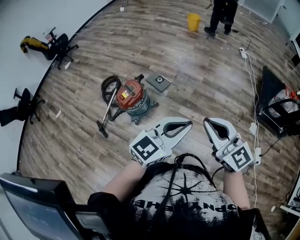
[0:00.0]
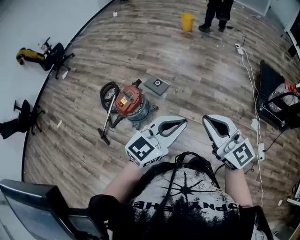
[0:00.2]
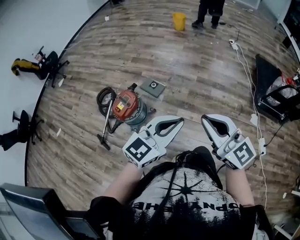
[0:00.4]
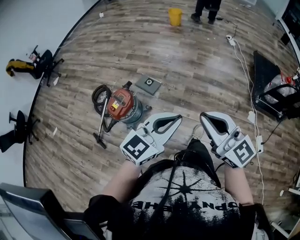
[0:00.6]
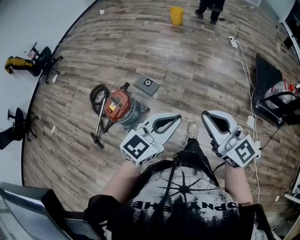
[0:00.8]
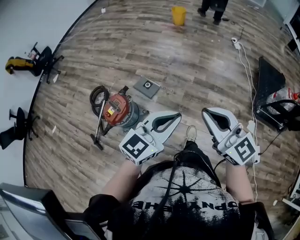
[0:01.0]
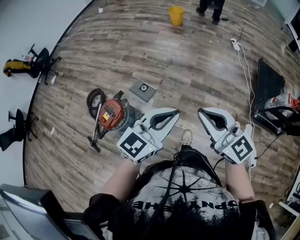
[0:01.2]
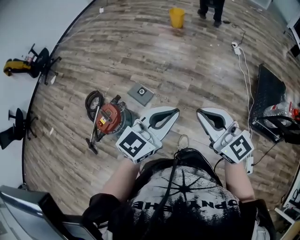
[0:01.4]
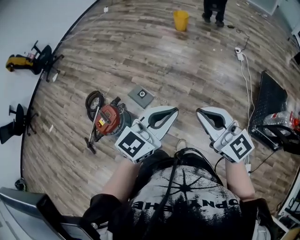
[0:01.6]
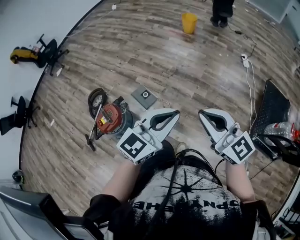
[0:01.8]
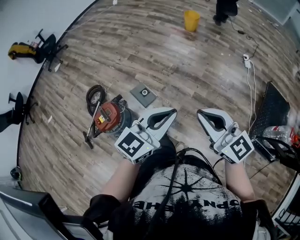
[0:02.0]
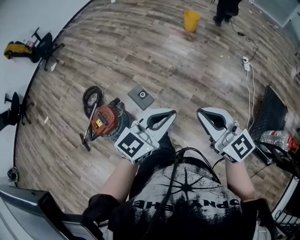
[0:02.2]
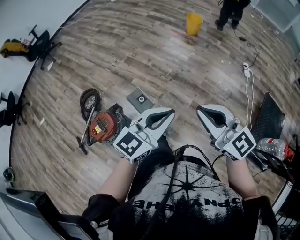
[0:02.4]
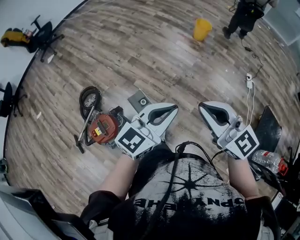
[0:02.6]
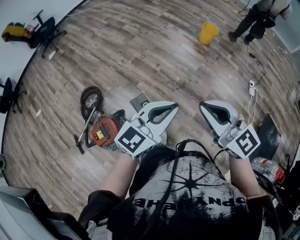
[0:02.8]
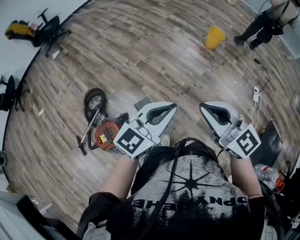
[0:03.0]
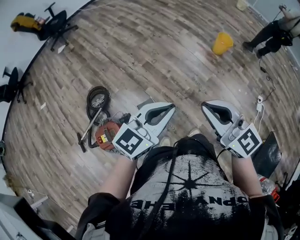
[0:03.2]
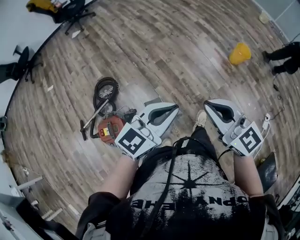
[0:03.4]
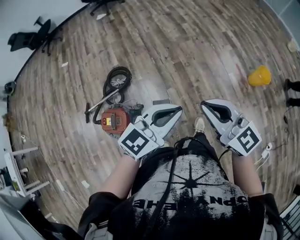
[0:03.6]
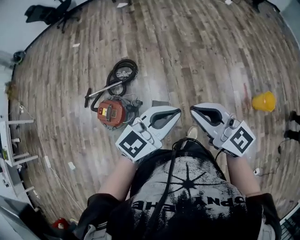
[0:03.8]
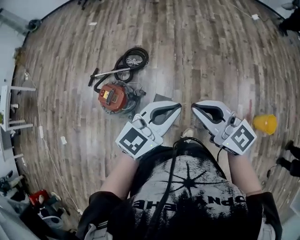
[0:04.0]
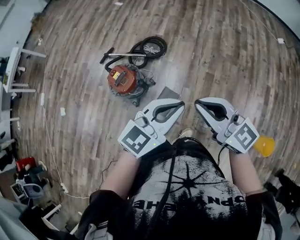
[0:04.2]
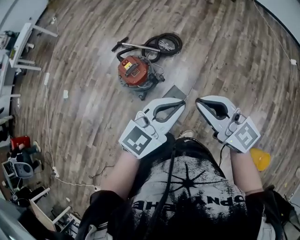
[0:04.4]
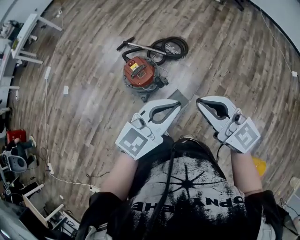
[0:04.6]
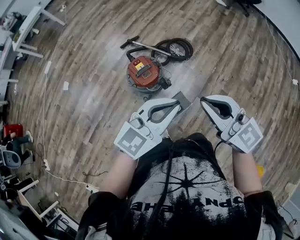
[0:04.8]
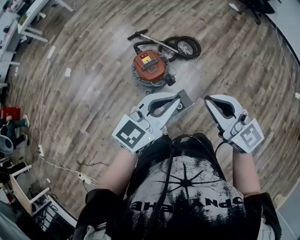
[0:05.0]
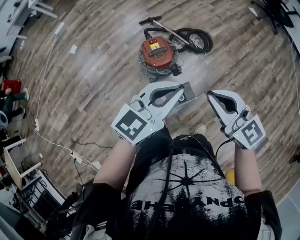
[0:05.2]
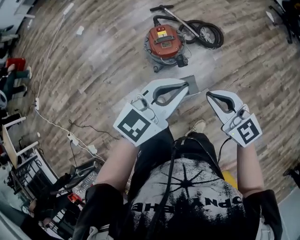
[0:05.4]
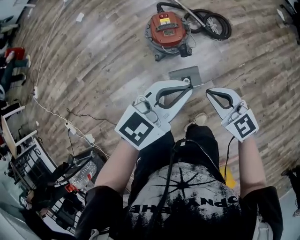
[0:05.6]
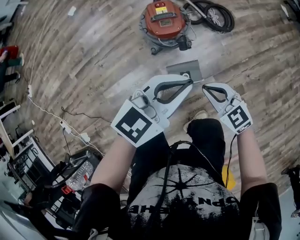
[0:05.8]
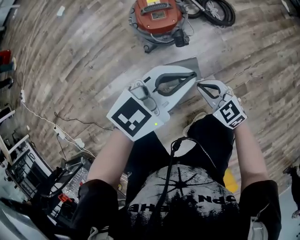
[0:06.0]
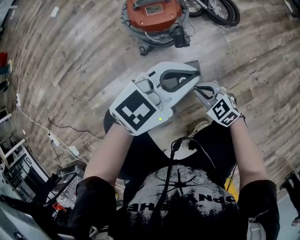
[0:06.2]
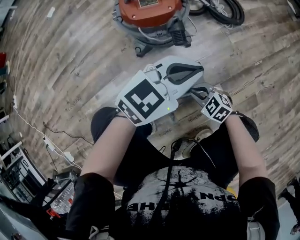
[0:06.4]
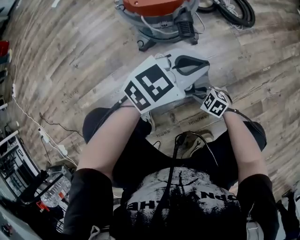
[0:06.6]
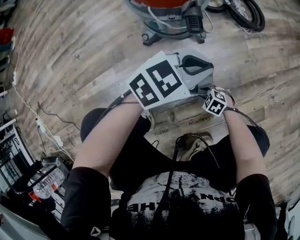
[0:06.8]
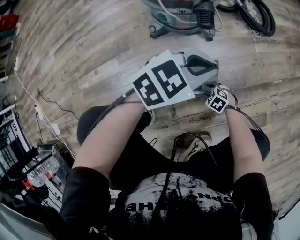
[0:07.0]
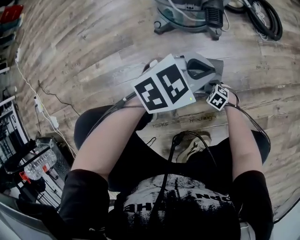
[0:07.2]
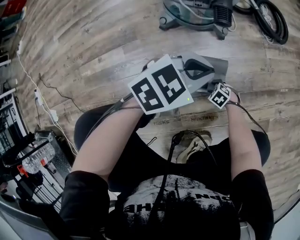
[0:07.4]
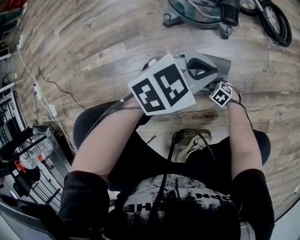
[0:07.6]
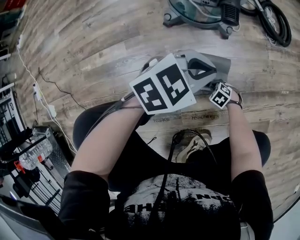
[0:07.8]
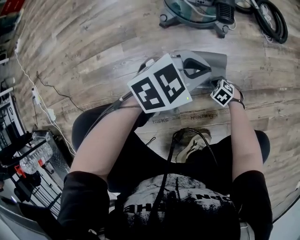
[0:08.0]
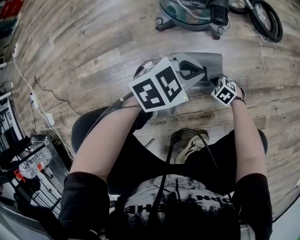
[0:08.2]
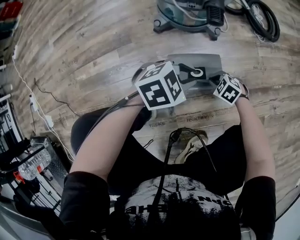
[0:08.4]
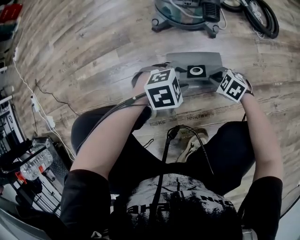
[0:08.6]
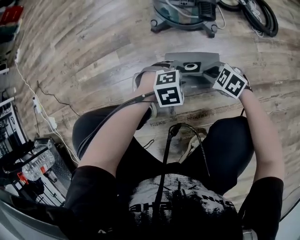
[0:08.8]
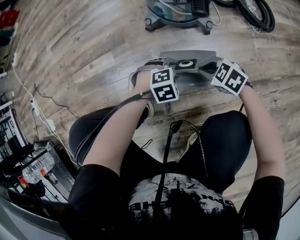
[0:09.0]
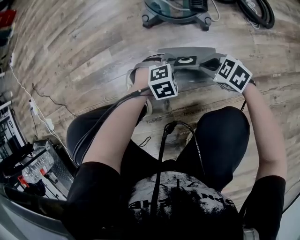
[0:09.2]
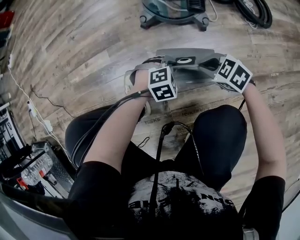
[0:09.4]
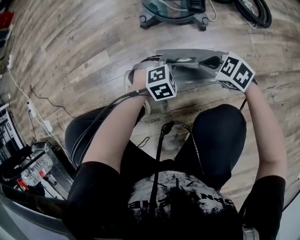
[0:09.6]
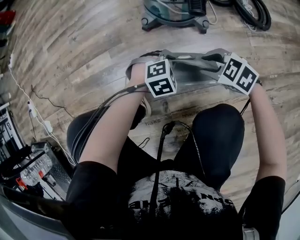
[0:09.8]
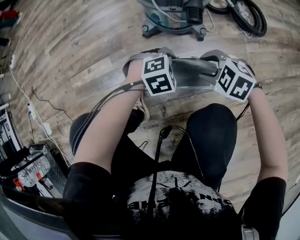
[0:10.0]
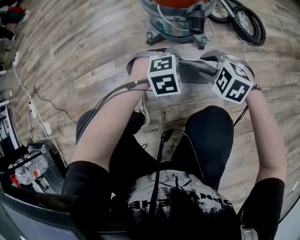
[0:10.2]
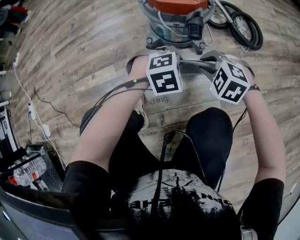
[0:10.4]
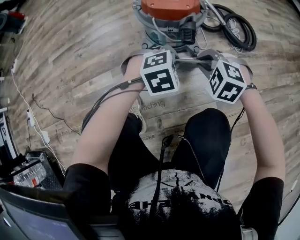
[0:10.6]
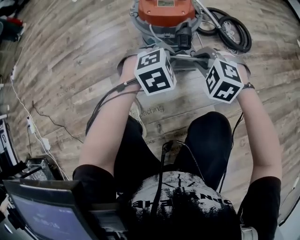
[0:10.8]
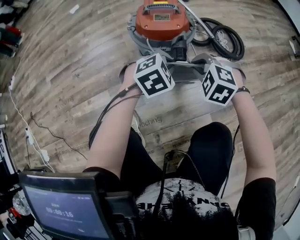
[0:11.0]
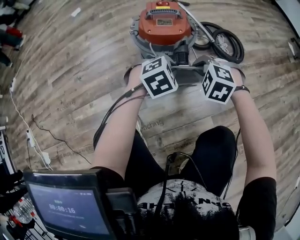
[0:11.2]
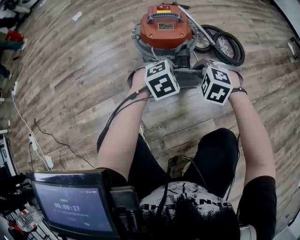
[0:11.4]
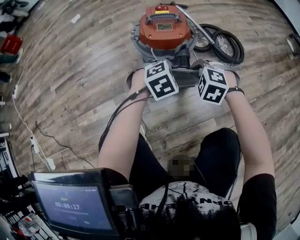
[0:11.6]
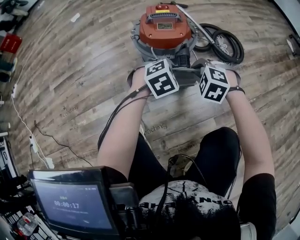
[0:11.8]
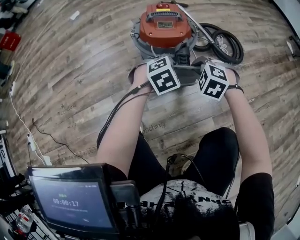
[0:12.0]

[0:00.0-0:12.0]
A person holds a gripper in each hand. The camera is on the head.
0:00.0 to 0:01.6: The grippers both shift forward by about 35 cm.
0:01.6 to 0:03.0: The two grippers go roughly 40 cm forward and to the left.
0:03.0 to 0:04.4: The right gripper ends up some 25 cm from where it was, and rotates roughly 80 degrees, while the left gripper ends up some 20 cm from where it was, and turns by approximately 70 degrees.
0:04.4 to 0:06.0: The left gripper goes about 25 cm downward, and rotates about 30 degrees, while the right gripper is displaced downward by some 50 cm, and tilts its fingers about 40 degrees downward.
0:06.0 to 0:07.6: The right gripper shifts roughly 60 cm downward, angles its fingers downward, by roughly 40 degrees, and opens its fingers; the left gripper moves downward, some 35 cm, and swivels about 20 degrees.
0:07.6 to 0:09.0: The right gripper moves upward, approximately 20 cm, changes its angle by some 20 degrees, and closes; the left gripper shifts roughly 20 cm downward, tips its fingers downward by roughly 40 degrees, and opens.
0:09.0 to 0:10.4: Both grippers move upward, roughly 15 cm. The right gripper turns by roughly 30 degrees, and opens, then closes once more; the left gripper closes its fingers.
0:10.4 to 0:12.0: The two grippers go about 10 cm forward.

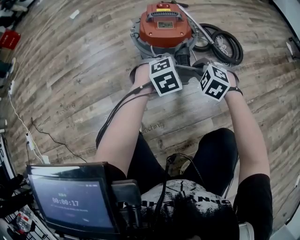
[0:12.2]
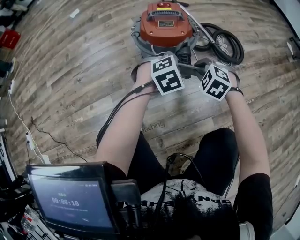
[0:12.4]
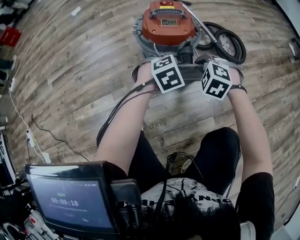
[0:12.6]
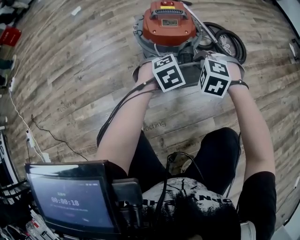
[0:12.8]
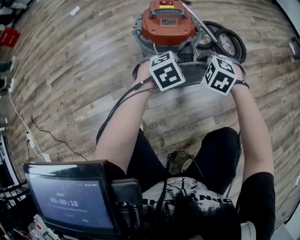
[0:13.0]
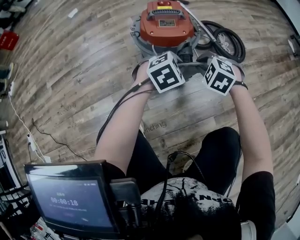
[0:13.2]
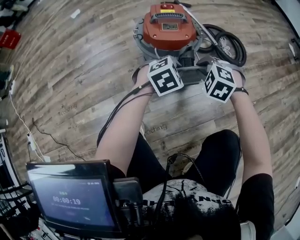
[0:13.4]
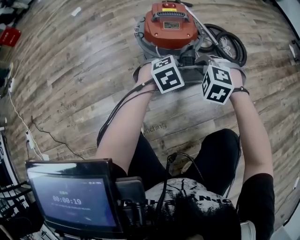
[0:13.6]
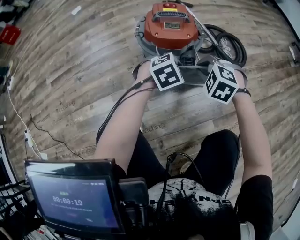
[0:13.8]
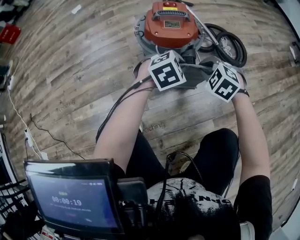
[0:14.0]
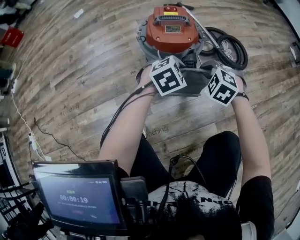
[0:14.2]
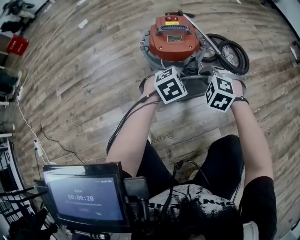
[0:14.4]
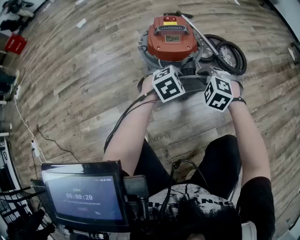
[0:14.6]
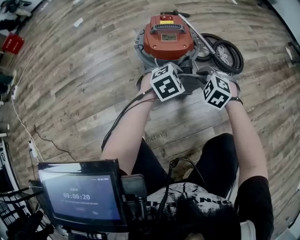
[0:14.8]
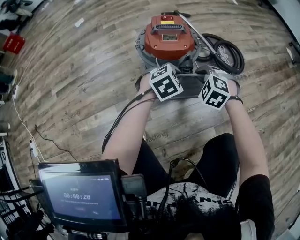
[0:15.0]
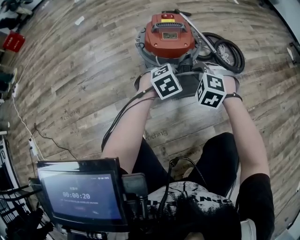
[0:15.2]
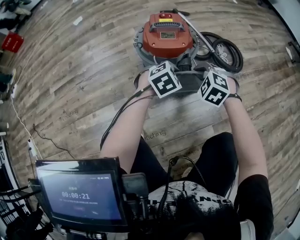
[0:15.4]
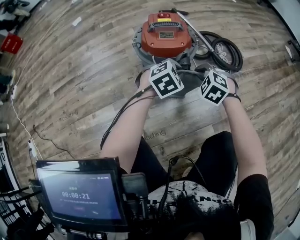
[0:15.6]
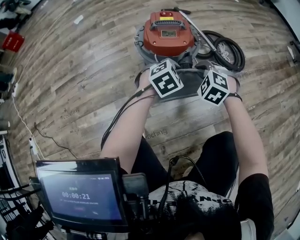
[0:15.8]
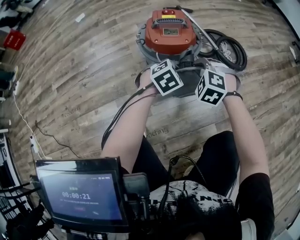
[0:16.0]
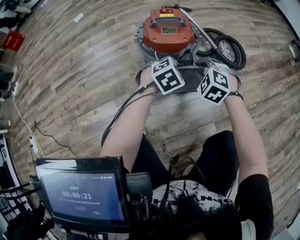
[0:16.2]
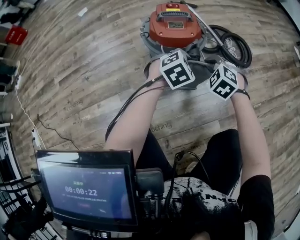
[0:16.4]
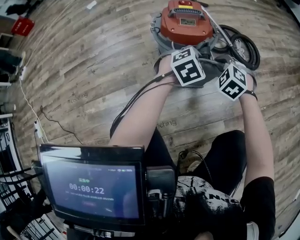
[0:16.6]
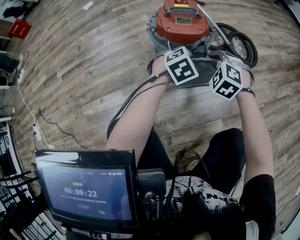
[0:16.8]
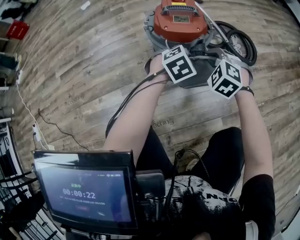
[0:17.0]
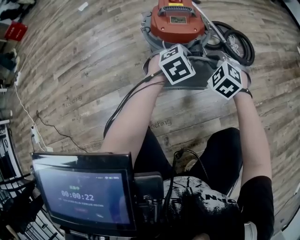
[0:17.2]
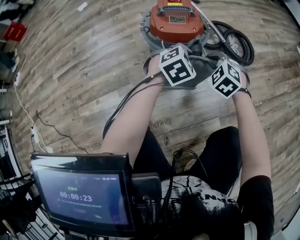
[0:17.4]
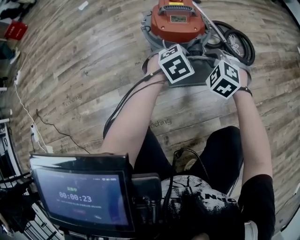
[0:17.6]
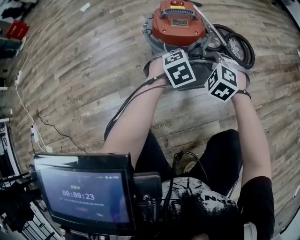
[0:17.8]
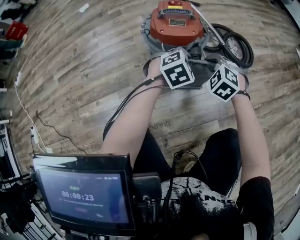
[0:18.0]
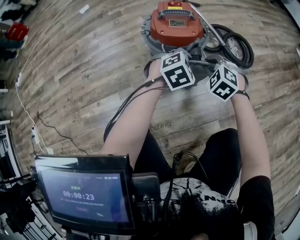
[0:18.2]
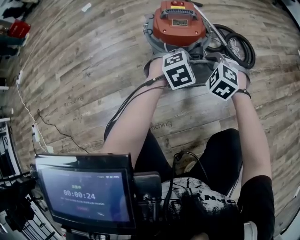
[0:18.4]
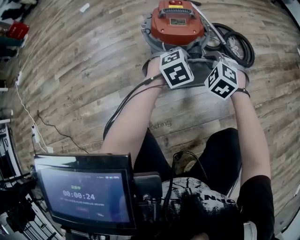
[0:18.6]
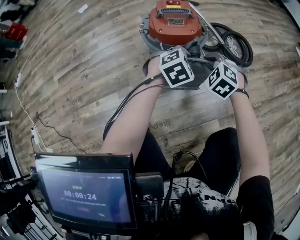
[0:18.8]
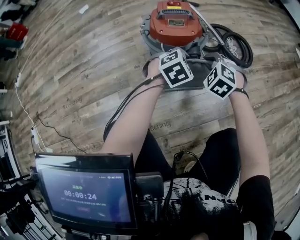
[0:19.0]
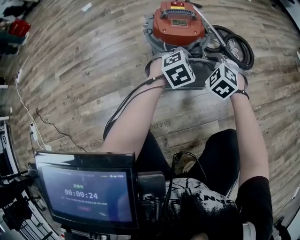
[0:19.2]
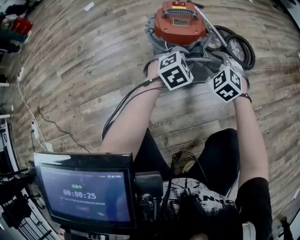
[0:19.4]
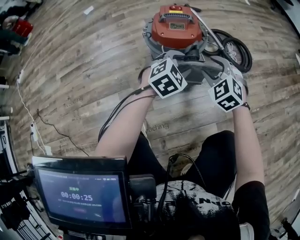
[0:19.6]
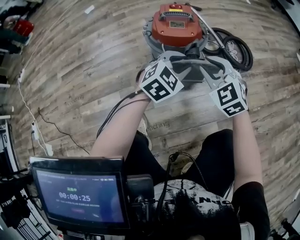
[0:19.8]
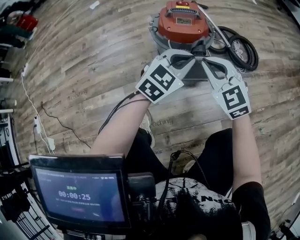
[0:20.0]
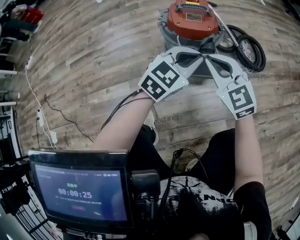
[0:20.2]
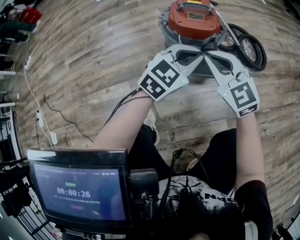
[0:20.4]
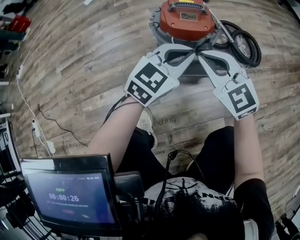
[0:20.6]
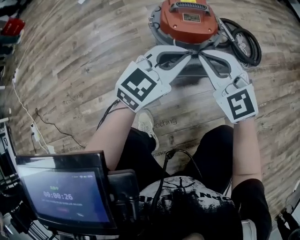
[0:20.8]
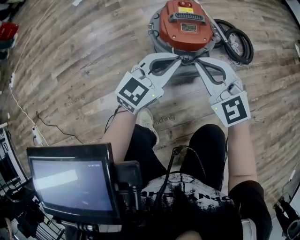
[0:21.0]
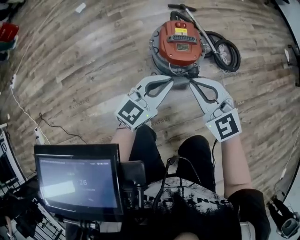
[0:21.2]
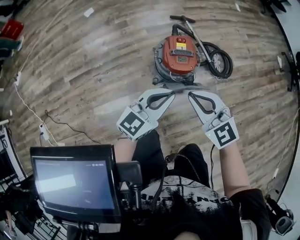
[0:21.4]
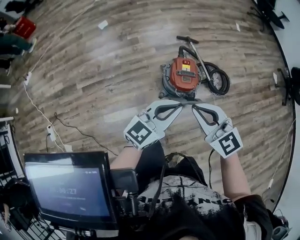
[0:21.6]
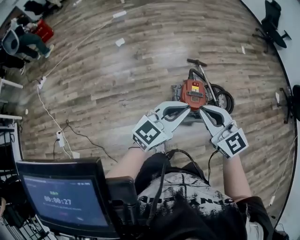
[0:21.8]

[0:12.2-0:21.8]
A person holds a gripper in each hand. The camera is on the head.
0:12.2 to 0:18.6: The grippers make only small movements.
0:18.6 to 0:20.2: The grippers both shift upward and backward by roughly 15 cm. The left gripper points its fingers roughly 30 degrees further upward, and opens and closes again. The right gripper tips its fingers upward by roughly 30 degrees, and opens, then closes once more.
0:20.2 to 0:21.8: The two grippers go approximately 50 cm upward. The left gripper changes its angle by approximately 20 degrees.

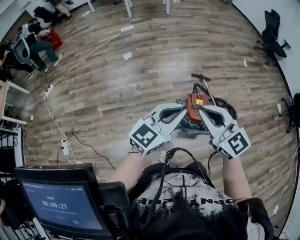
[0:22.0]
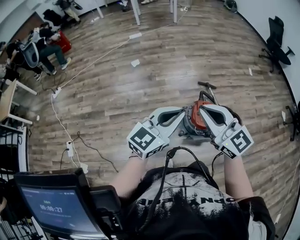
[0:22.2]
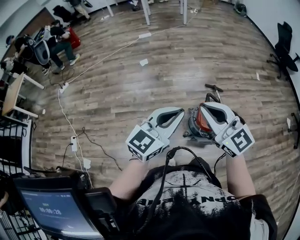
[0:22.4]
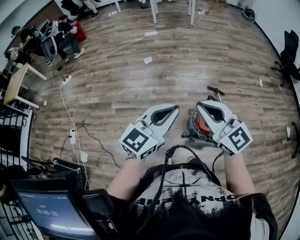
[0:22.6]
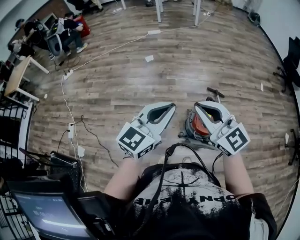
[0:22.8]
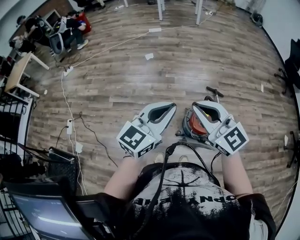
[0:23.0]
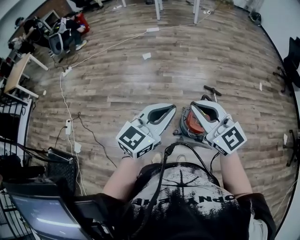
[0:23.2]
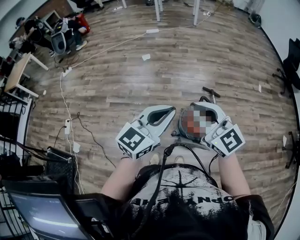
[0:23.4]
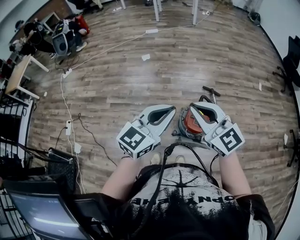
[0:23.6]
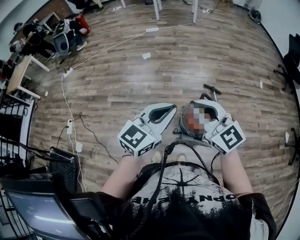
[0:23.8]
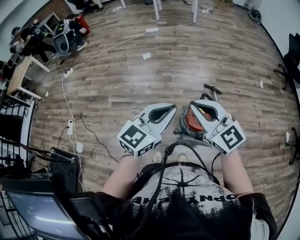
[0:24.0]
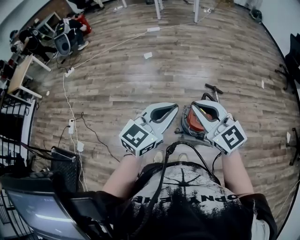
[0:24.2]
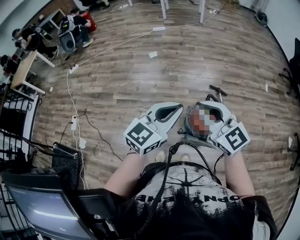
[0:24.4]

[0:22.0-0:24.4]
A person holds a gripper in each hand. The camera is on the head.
0:22.0 to 0:23.2: The left gripper goes to the left and returns, about 5 cm each way.
0:23.2 to 0:24.4: The grippers stay close to where they were, moving slightly.
